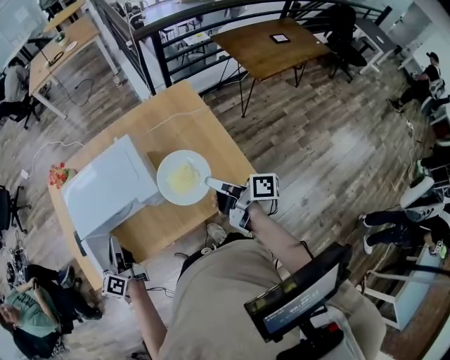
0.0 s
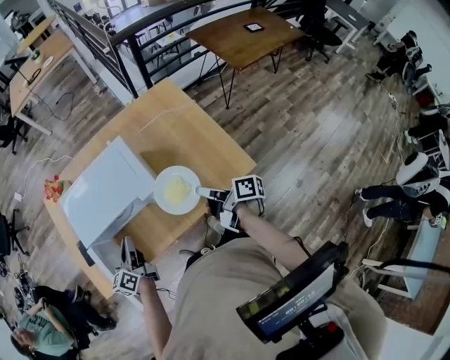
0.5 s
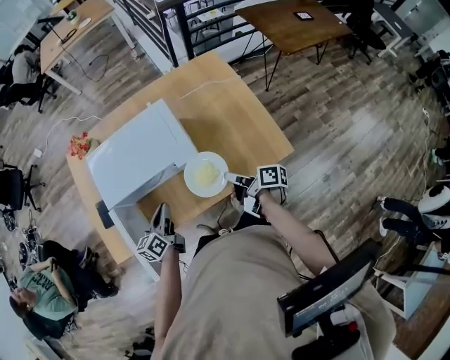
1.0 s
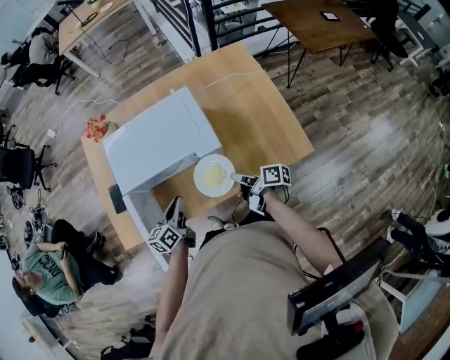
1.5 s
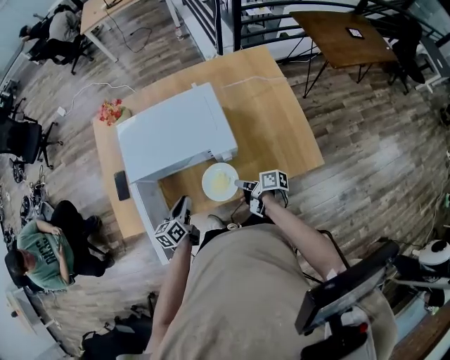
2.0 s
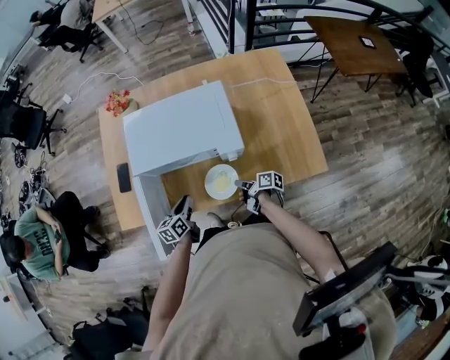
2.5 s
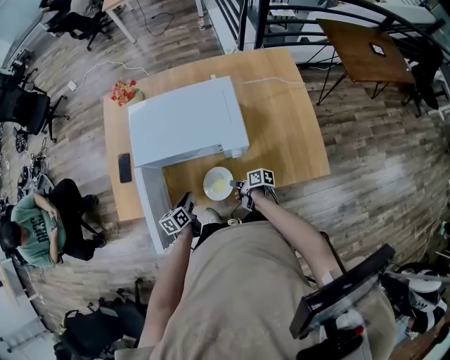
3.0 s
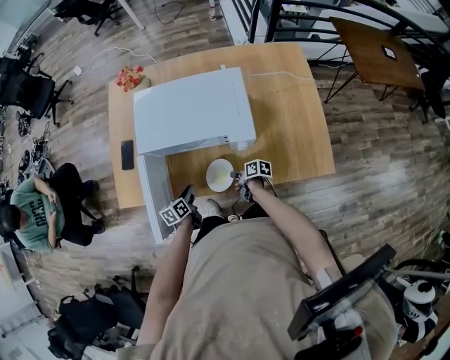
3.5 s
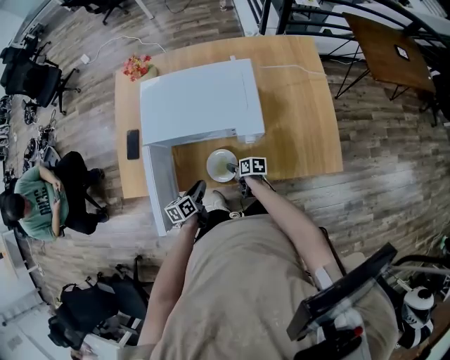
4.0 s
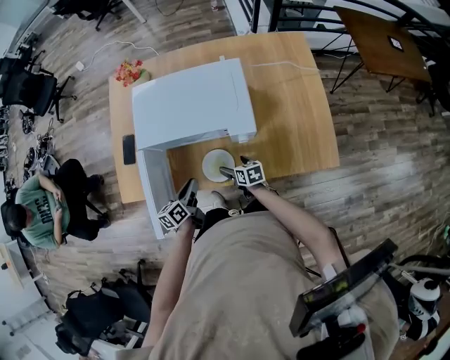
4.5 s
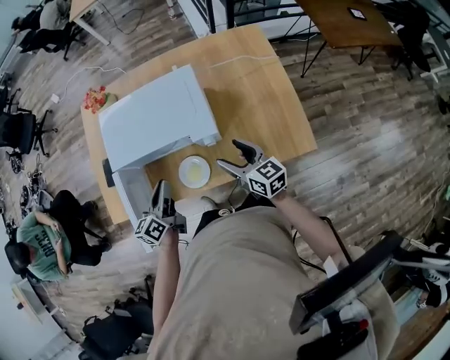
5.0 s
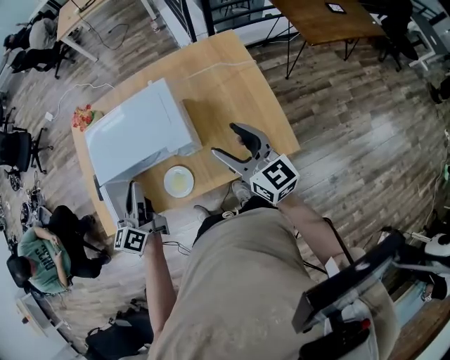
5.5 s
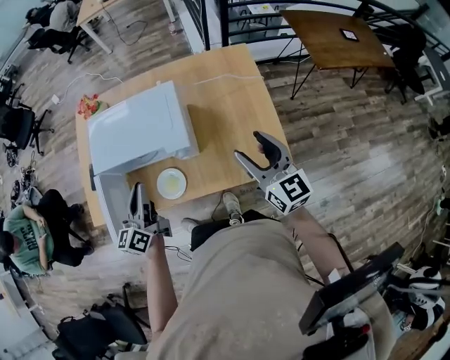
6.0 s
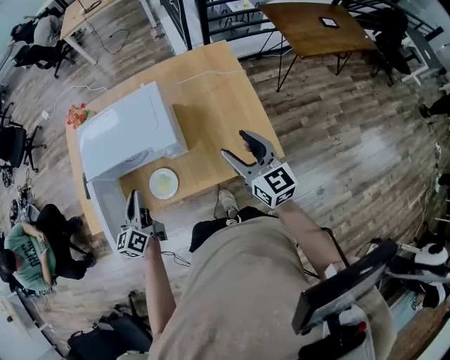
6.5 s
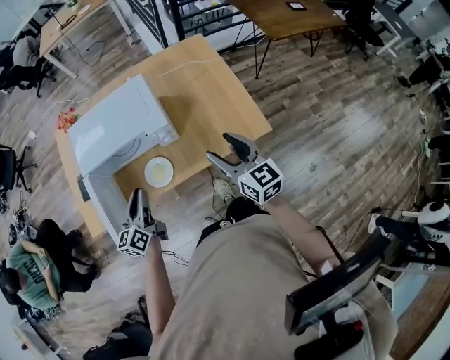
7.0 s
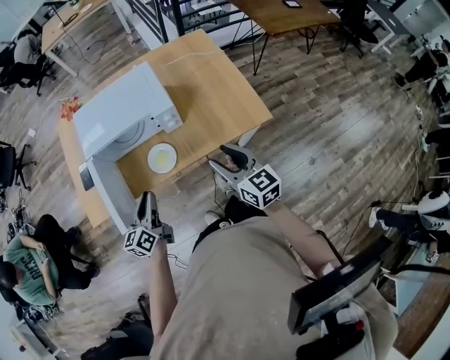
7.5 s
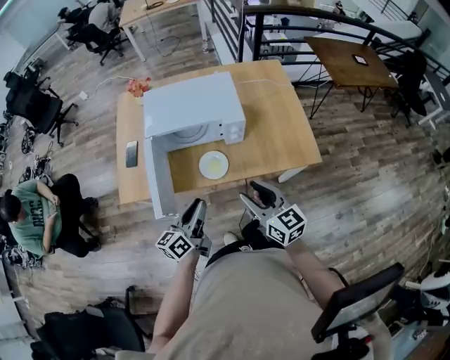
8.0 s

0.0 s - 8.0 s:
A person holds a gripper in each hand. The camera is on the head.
0.0 s - 2.0 s: The left gripper shifts roughly 15 cm downward, and swivels about 20 degrees. The right gripper moves downward and to the left, about 35 cm, and rotates roughly 30 degrees.
2.0 s - 4.0 s: The left gripper goes some 10 cm downward. The right gripper heads downward and to the left, covering about 15 cm, swivels about 30 degrees, and opens its fingers.
4.0 s - 6.0 s: The left gripper heads upward and to the right, covering approximately 30 cm, and tips its fingers upward by about 30 degrees, while the right gripper shifts approximately 50 cm upward and to the right, tilts its fingers roughly 40 degrees upward, and opens, then closes once more.
6.0 s - 8.0 s: The left gripper goes about 20 cm backward, and rotates about 20 degrees. Meanwhile the right gripper travels to the left and backward by approximately 30 cm.

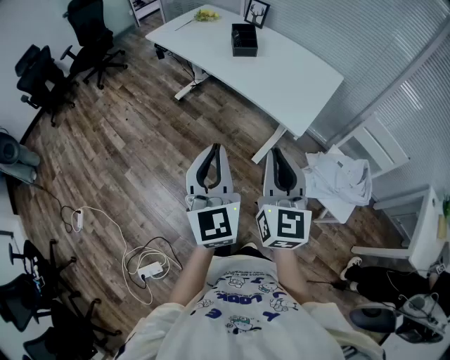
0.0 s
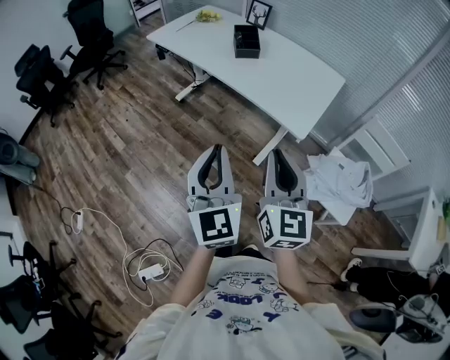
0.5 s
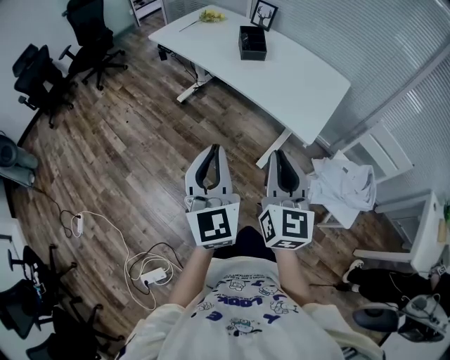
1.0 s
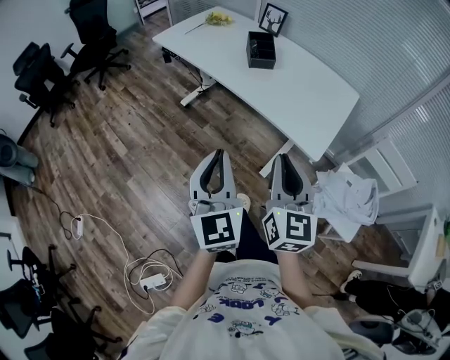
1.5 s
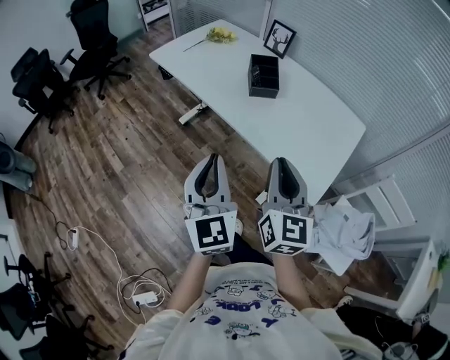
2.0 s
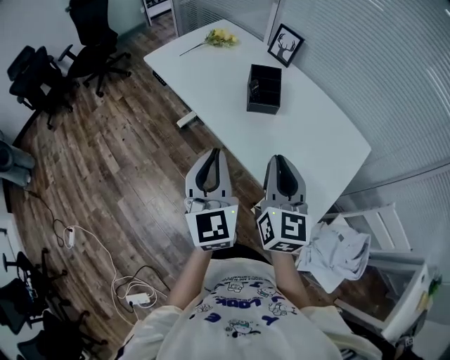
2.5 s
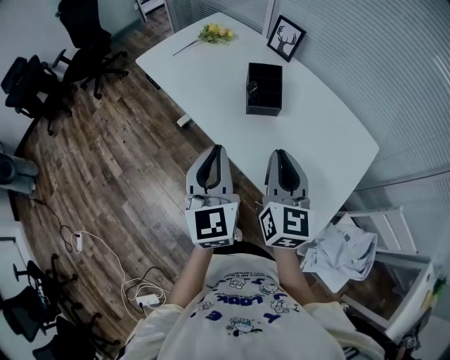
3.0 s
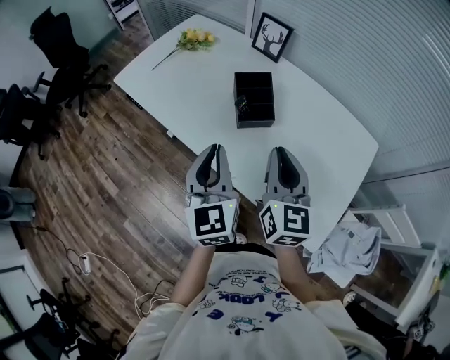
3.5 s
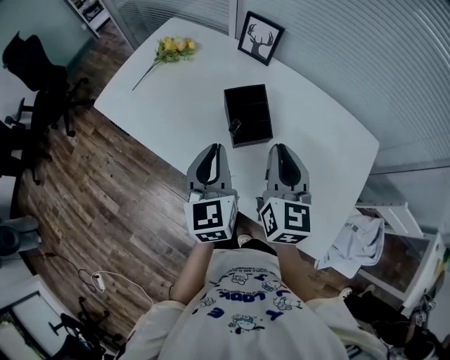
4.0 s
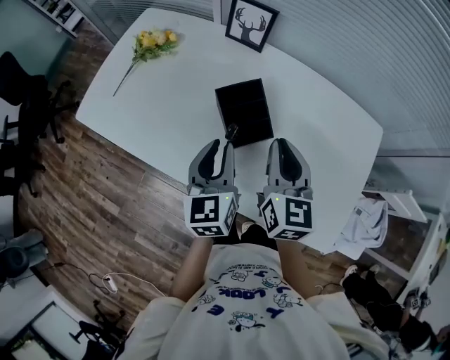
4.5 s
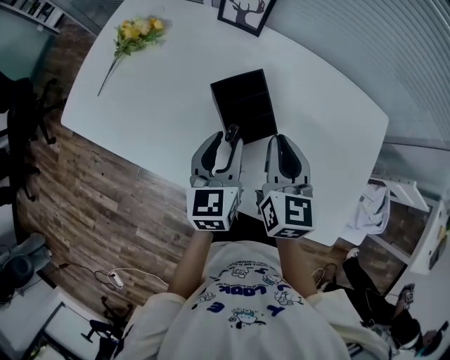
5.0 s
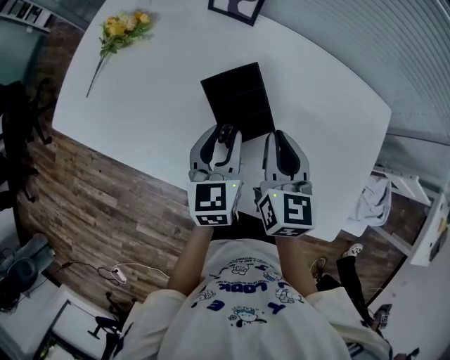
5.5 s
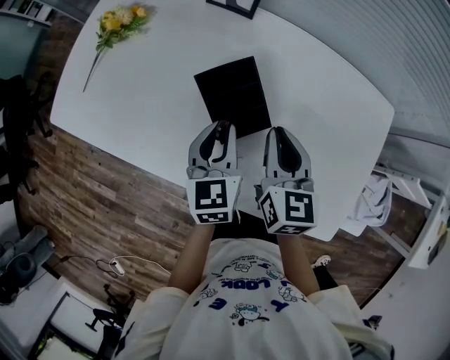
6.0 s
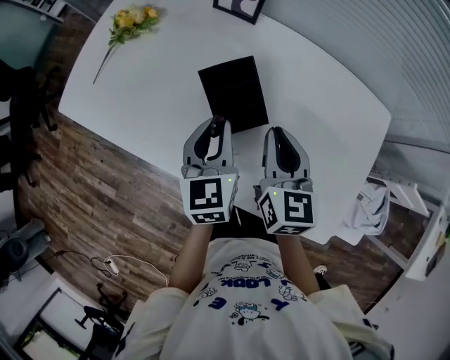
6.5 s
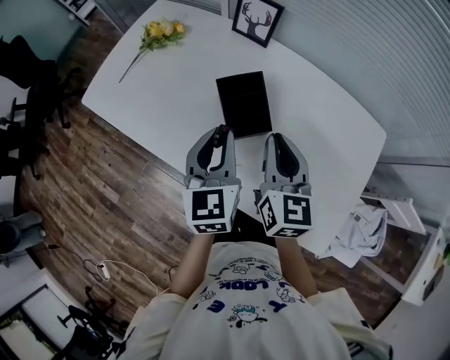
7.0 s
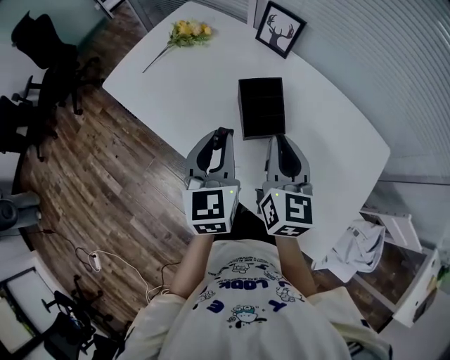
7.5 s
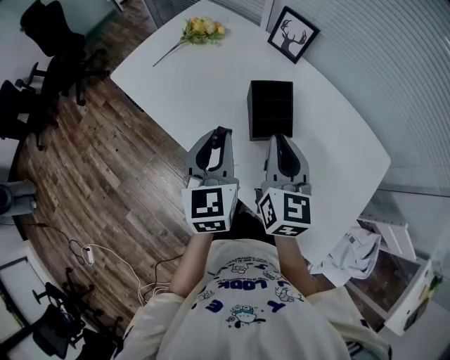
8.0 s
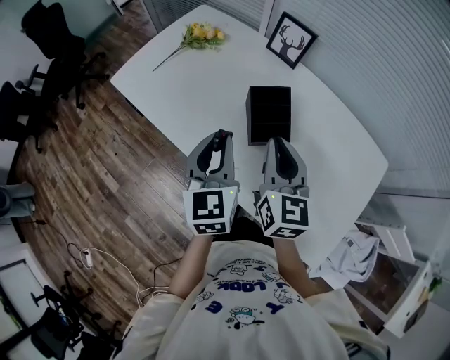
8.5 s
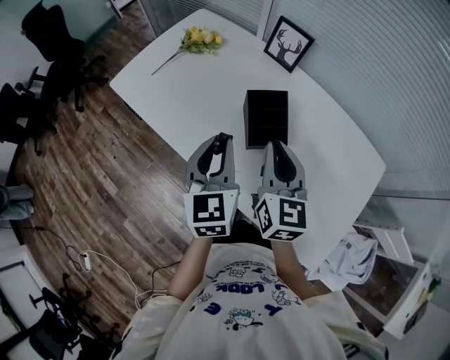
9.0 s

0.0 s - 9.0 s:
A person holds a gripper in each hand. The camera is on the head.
0.0 s - 2.0 s: The grippers both shift forward by roughly 25 cm.
2.0 s - 4.5 s: The pair of grippers is taken forward, approximately 50 cm. The left gripper rotates approximately 30 degrees. The right gripper changes its angle by roughly 20 degrees.
4.5 s - 7.0 s: The right gripper goes downward and returns, some 10 cm each way; the left gripper moves roughly 10 cm downward and comes back.
7.0 s - 9.0 s: Both grippers move to the left, approximately 5 cm.

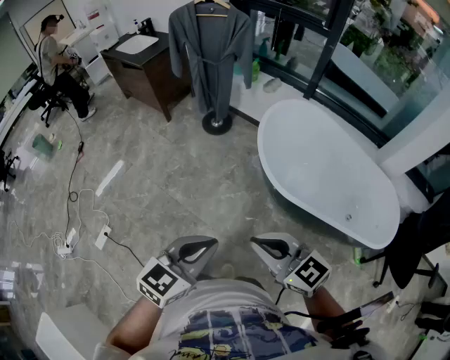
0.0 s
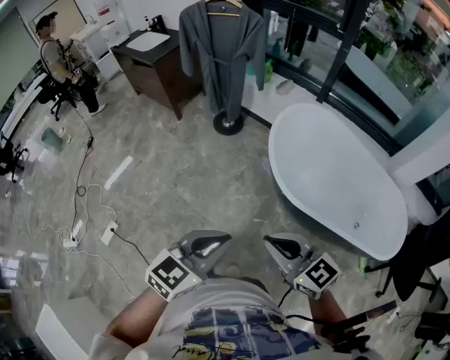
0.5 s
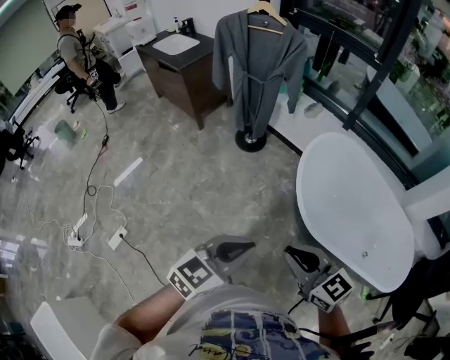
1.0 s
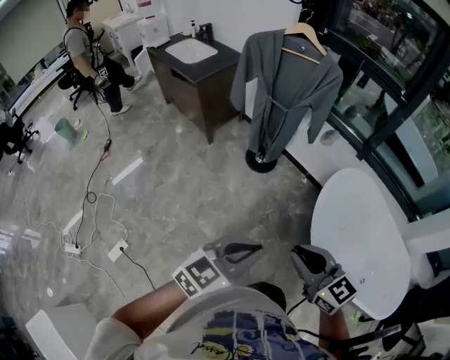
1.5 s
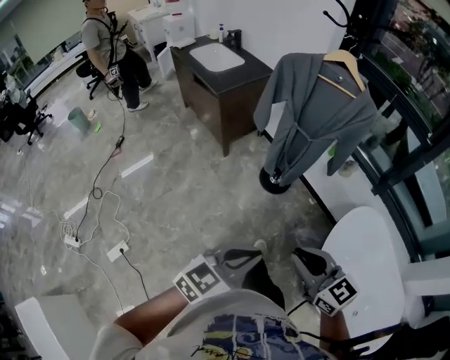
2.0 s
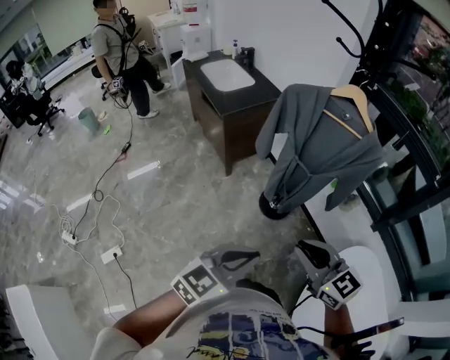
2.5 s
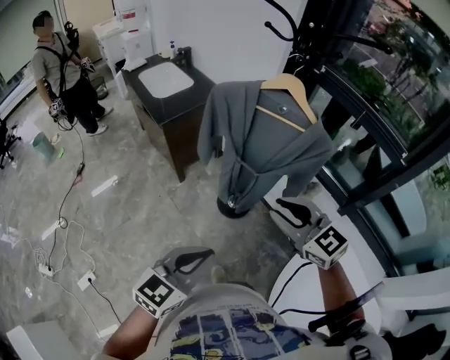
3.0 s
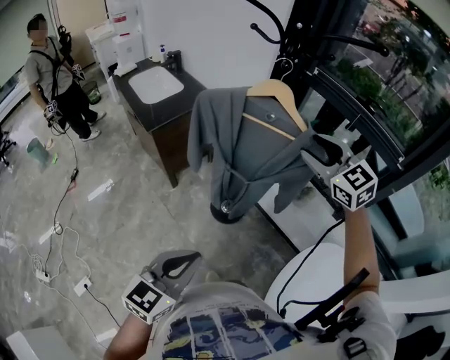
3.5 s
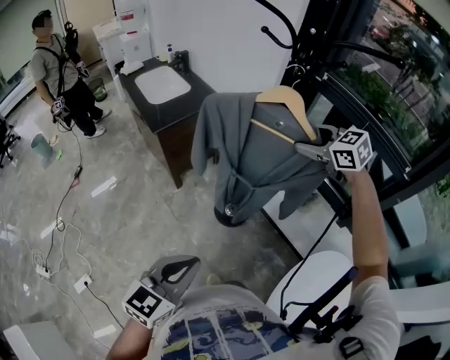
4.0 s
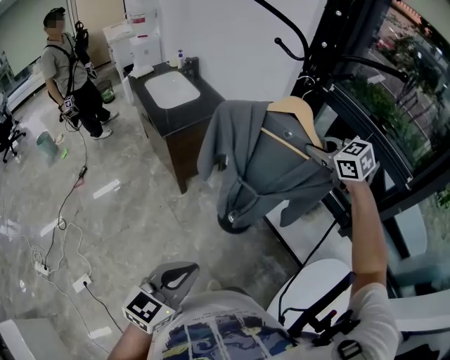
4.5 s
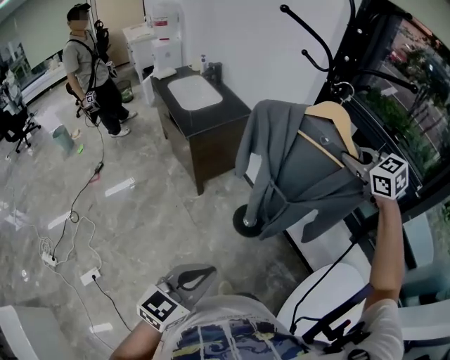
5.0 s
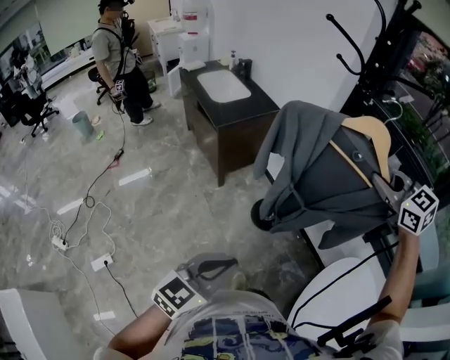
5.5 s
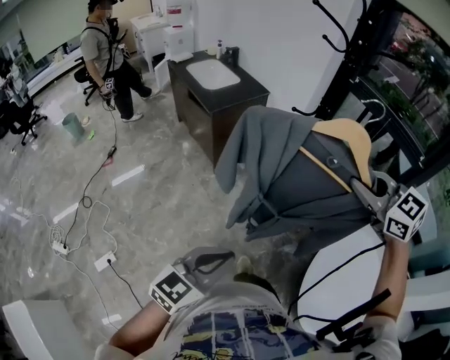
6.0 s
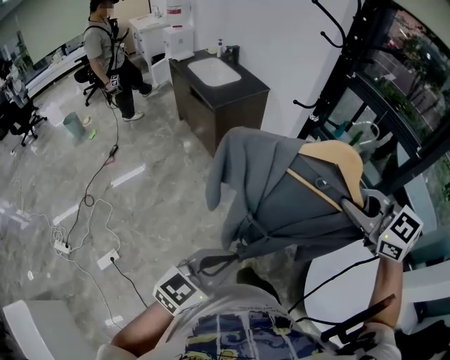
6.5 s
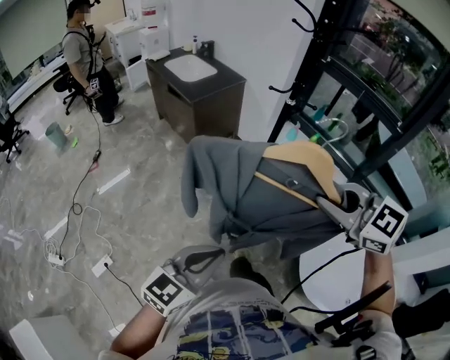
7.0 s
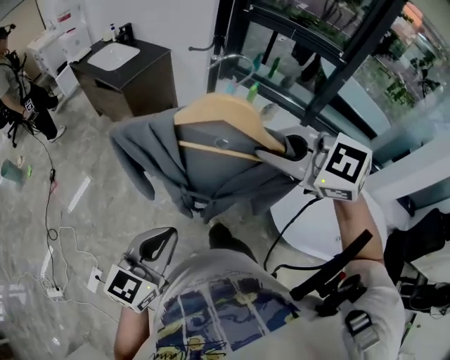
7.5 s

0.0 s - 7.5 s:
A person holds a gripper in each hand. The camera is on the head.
0.0 s - 2.0 s: The two grippers travel together, forward, some 40 cm.
2.0 s - 4.0 s: The left gripper heads forward, covering roughly 25 cm. The right gripper goes about 60 cm forward, turns by roughly 20 degrees, and opens.
4.0 s - 5.5 s: The right gripper shifts roughly 20 cm backward and upward, and closes up, while the left gripper heads backward and to the left, covering about 10 cm.
5.5 s - 7.5 s: The left gripper shifts roughly 15 cm backward. The right gripper travels backward and to the left by approximately 35 cm.

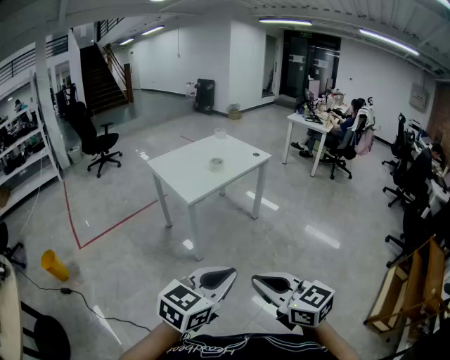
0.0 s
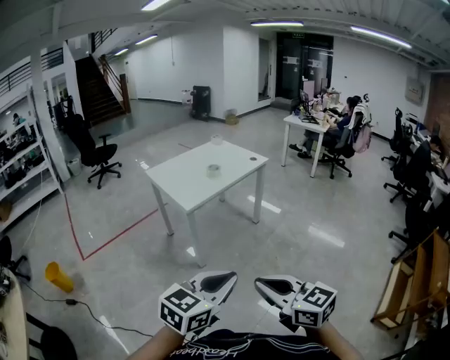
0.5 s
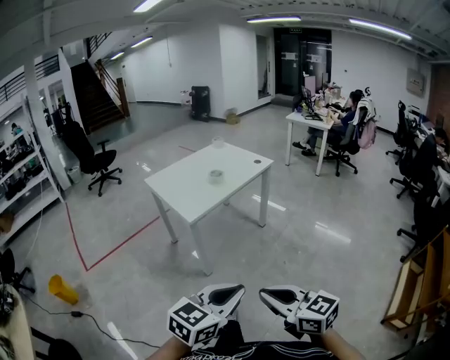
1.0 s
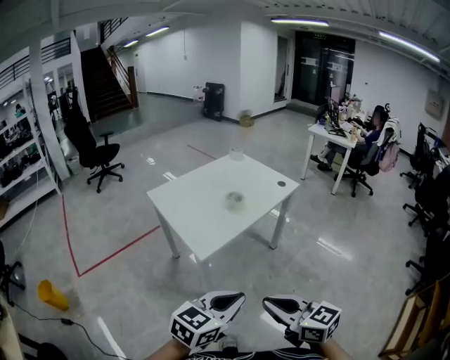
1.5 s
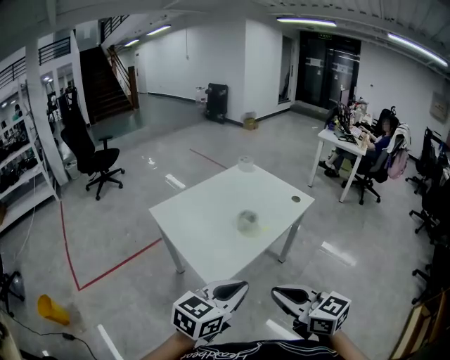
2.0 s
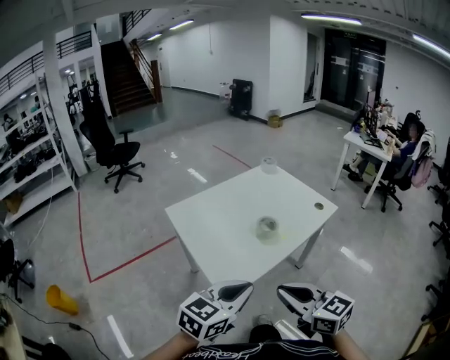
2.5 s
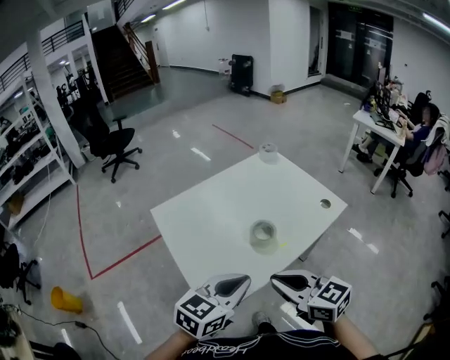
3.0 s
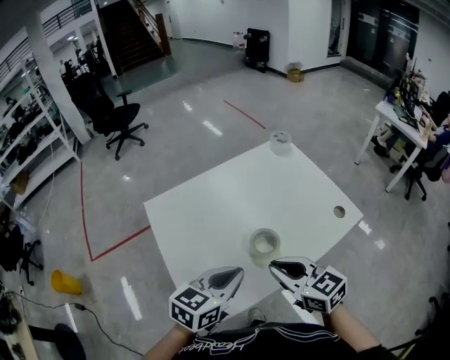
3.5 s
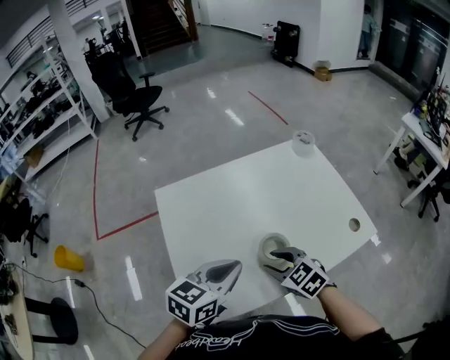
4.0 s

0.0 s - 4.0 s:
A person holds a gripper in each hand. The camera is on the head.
0.0 s - 2.0 s: The pair of grippers is taken forward, approximately 40 cm.
2.0 s - 4.0 s: The right gripper moves forward and downward, approximately 40 cm, points its fingers approximately 30 degrees further downward, and opens. The left gripper moves forward, approximately 30 cm, and swivels about 30 degrees.
